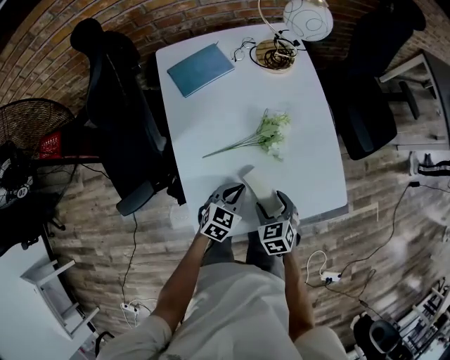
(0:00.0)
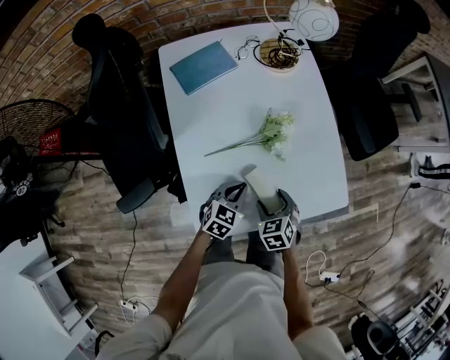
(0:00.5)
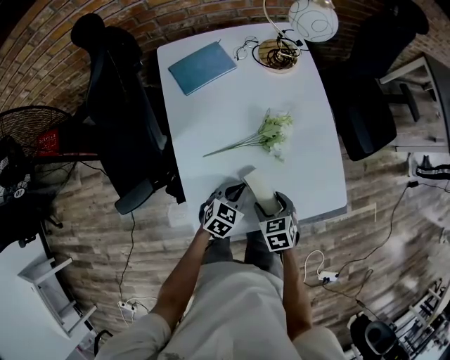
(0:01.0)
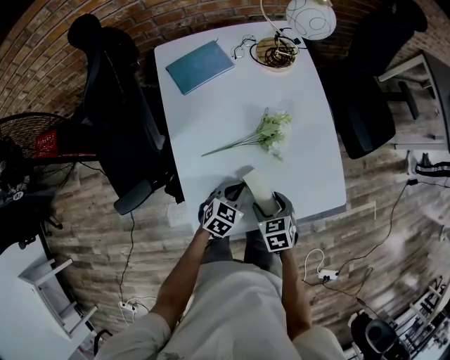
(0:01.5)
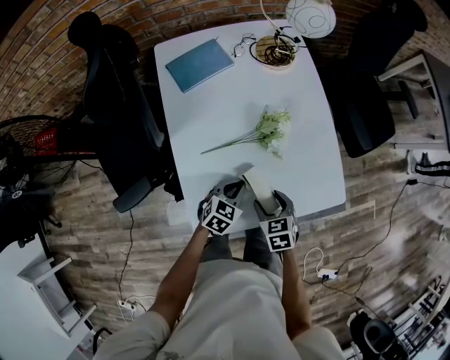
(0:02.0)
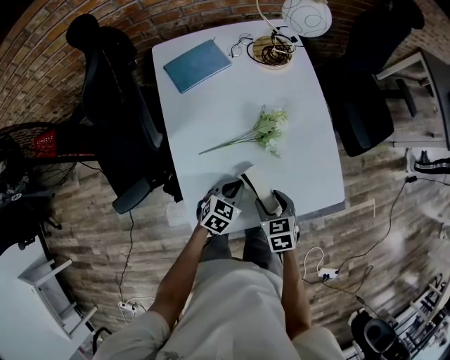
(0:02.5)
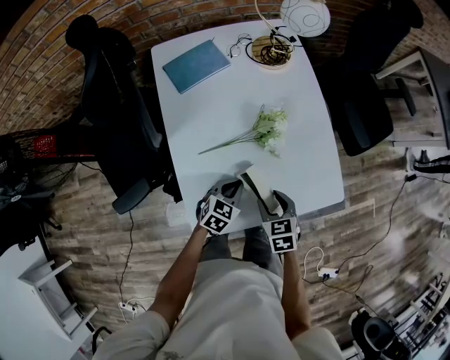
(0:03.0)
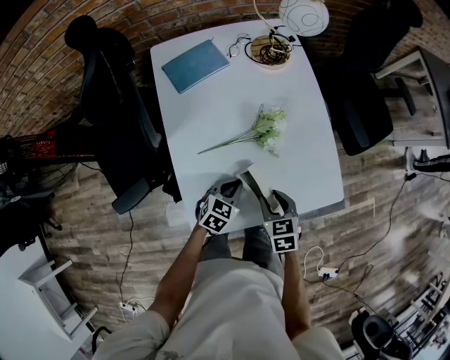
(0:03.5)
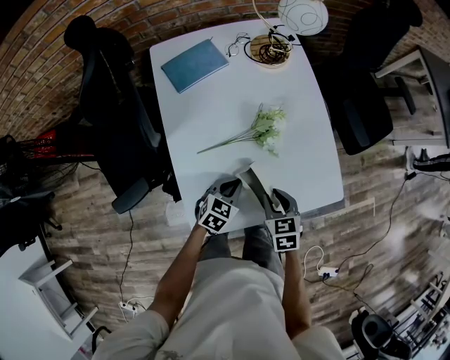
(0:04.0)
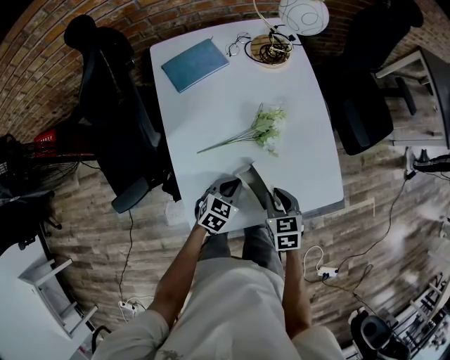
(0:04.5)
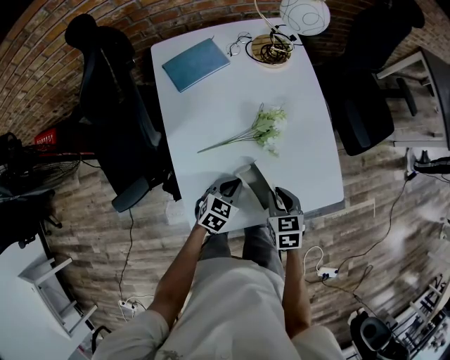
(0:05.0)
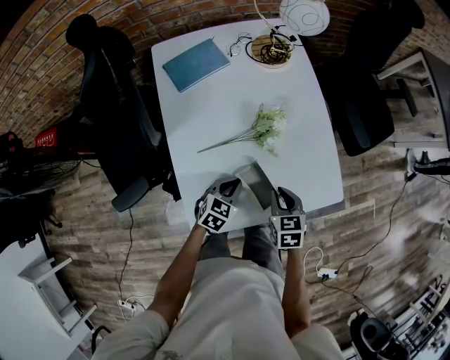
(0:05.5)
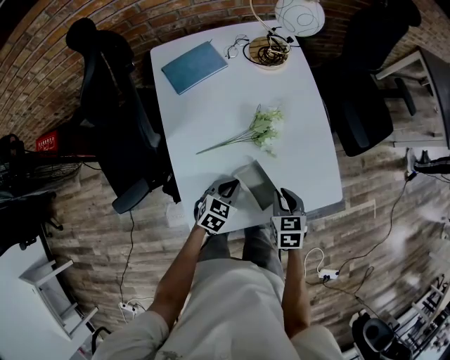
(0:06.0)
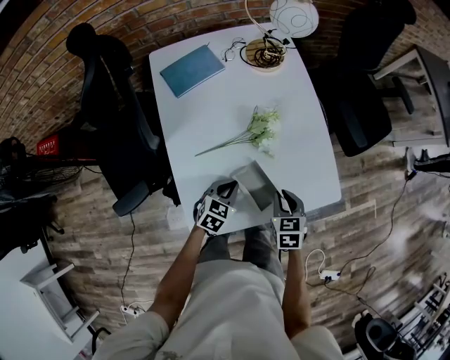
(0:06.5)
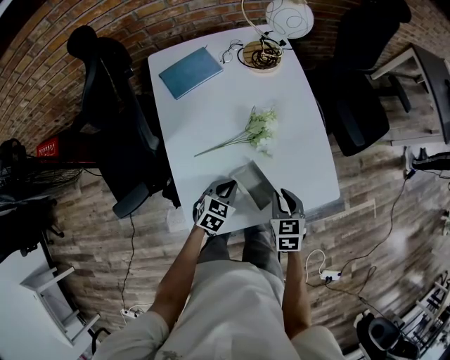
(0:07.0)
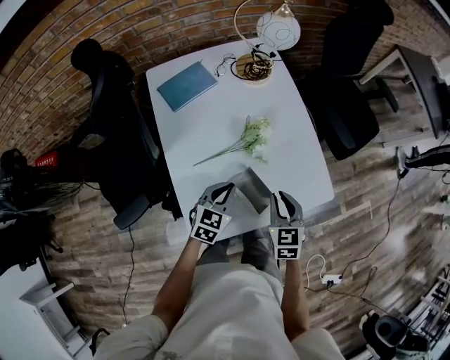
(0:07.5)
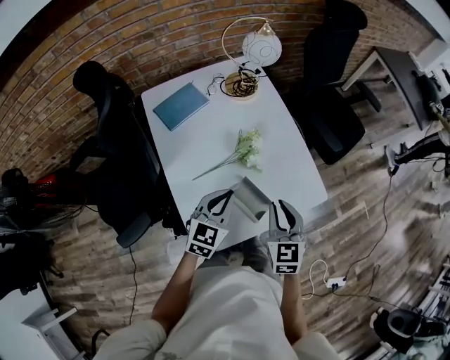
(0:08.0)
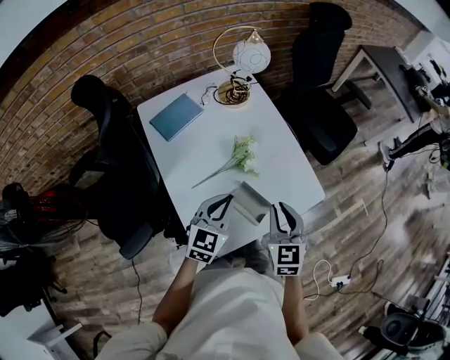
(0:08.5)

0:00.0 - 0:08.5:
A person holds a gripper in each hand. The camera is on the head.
0:00.0 - 0:02.0: The grippers stay close to where they were, moving slightly.
0:02.0 - 0:04.0: The right gripper closes up.
0:04.0 - 0:06.5: There are only small adjustments of the grippers.
0:06.5 - 0:08.5: The grippers both shift upward by some 20 cm. The left gripper swivels approximately 30 degrees. Meanwhile the right gripper rotates some 30 degrees.

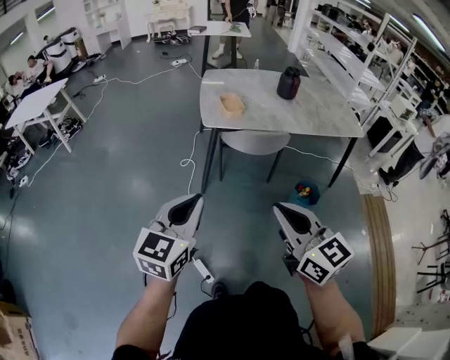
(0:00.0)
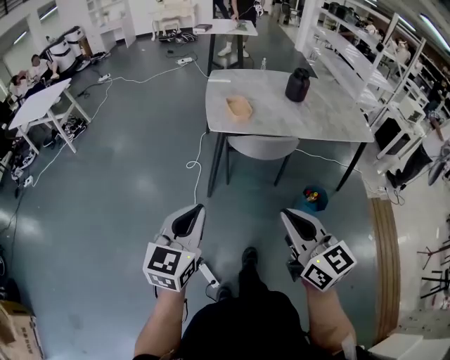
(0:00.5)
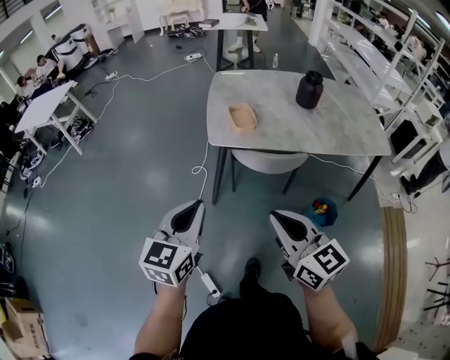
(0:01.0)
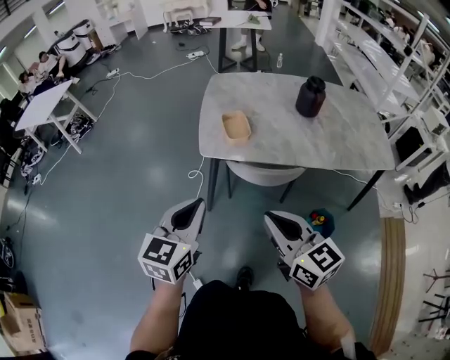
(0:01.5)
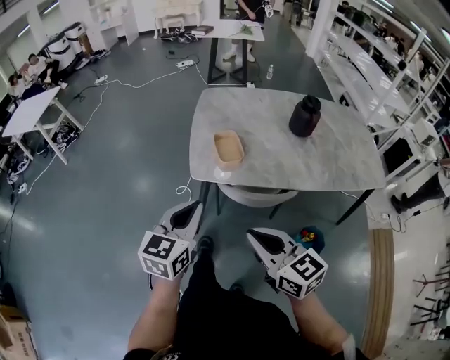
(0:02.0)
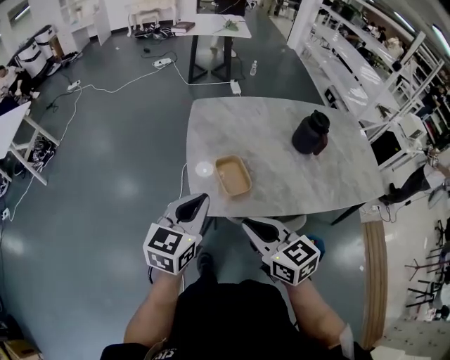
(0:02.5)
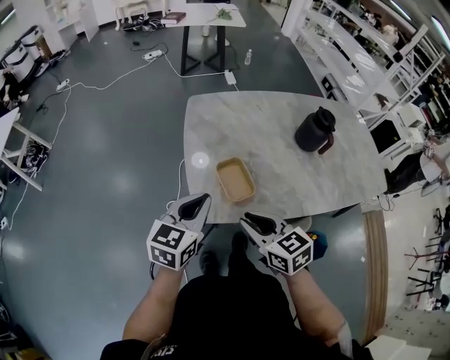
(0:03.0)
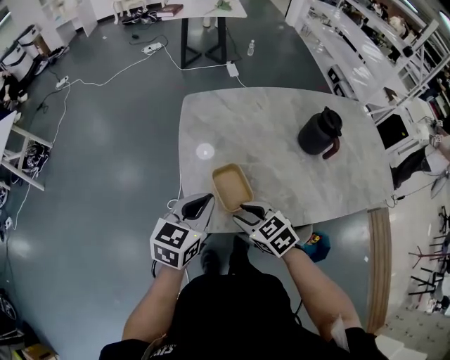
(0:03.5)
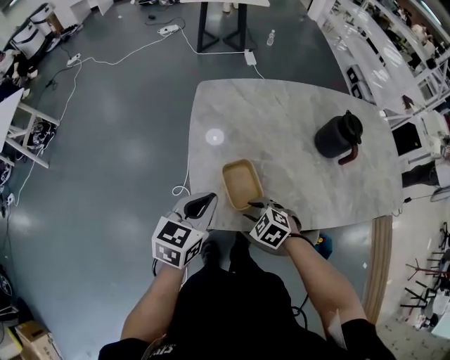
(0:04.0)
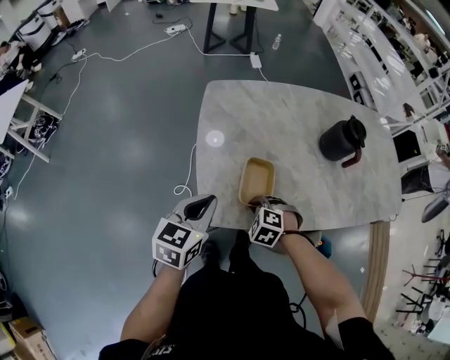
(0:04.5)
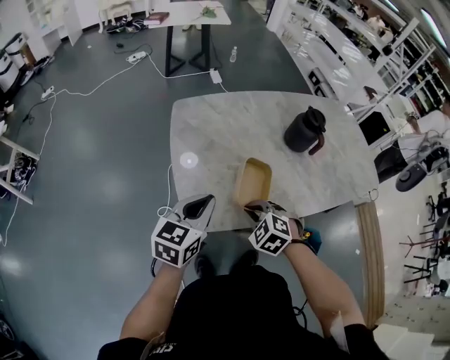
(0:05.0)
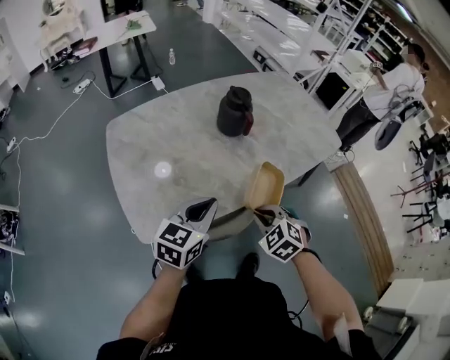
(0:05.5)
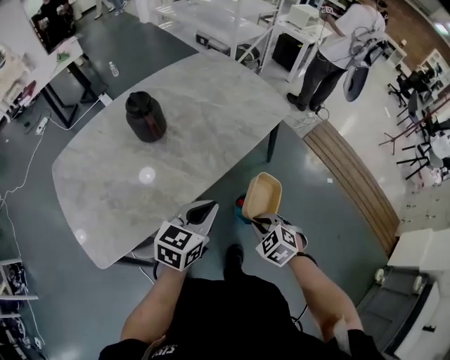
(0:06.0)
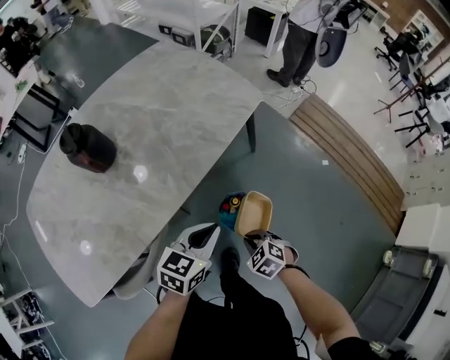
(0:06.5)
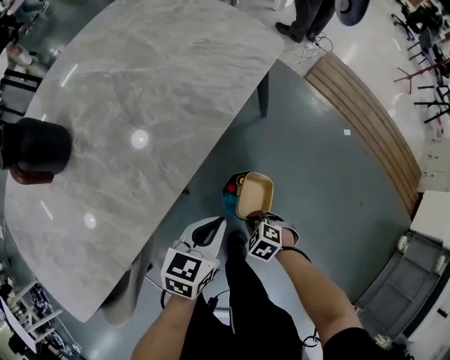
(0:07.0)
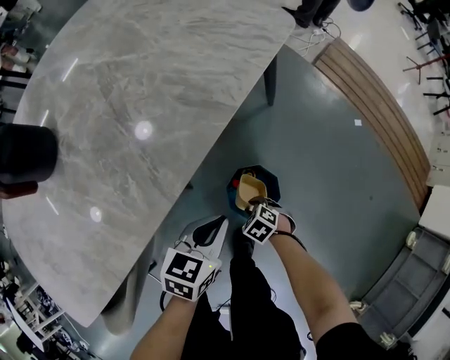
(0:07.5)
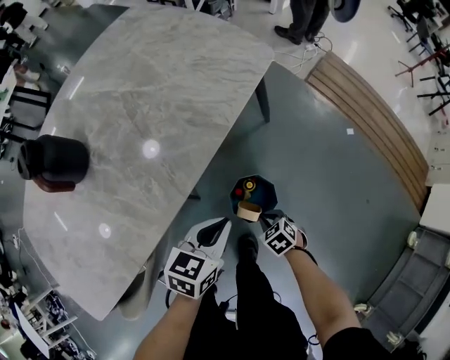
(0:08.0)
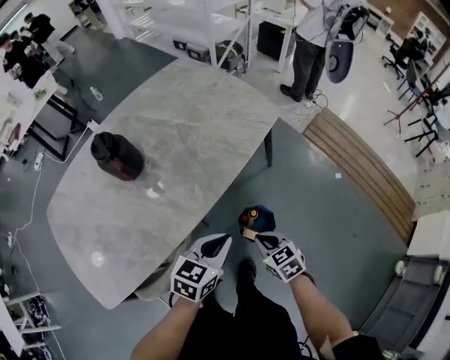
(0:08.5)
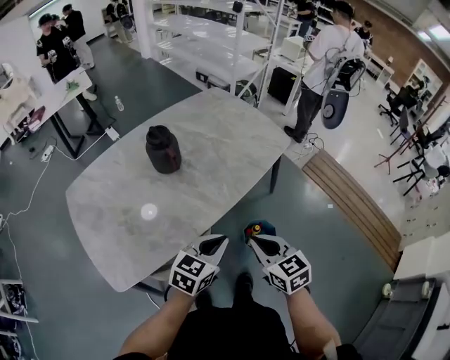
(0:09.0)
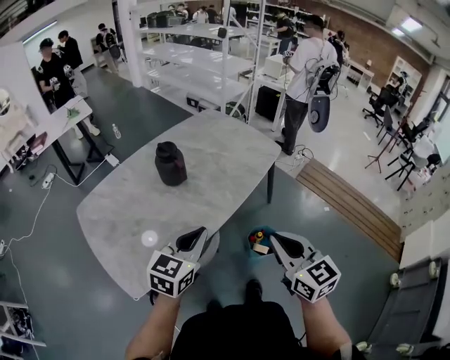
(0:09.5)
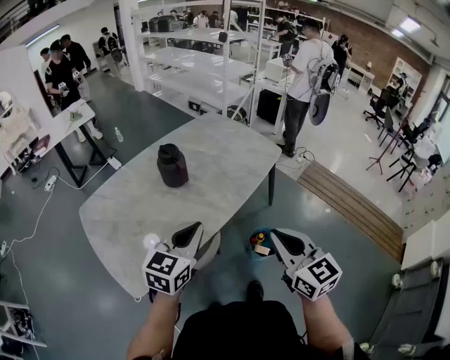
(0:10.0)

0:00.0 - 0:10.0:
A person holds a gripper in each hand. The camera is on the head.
0:00.0 - 0:02.0: The two grippers go some 30 cm forward.
0:02.0 - 0:04.0: The left gripper shifts about 30 cm forward. Meanwhile the right gripper heads forward and downward, covering approximately 40 cm, points its fingers some 50 degrees further downward, and opens its fingers.
0:04.0 - 0:06.0: Both grippers are carried approximately 50 cm. The right gripper changes its angle by about 50 degrees, and closes its fingers. The left gripper swivels some 40 degrees.
0:06.0 - 0:08.0: The two grippers go about 25 cm downward. The right gripper changes its angle by approximately 30 degrees.
0:08.0 - 0:10.0: The left gripper heads upward, to the left and backward, covering some 50 cm, and swivels about 30 degrees; the right gripper is displaced upward by approximately 60 cm, and angles its fingers upward, by roughly 60 degrees.

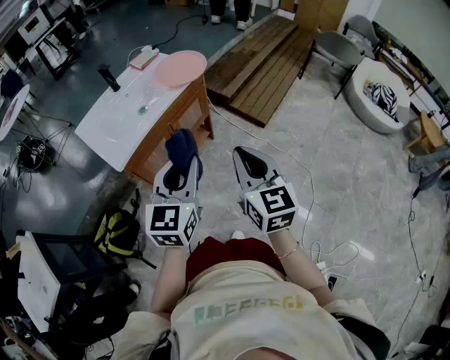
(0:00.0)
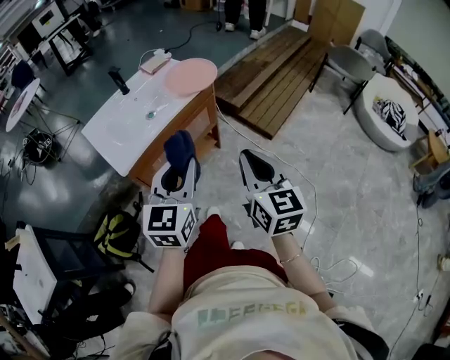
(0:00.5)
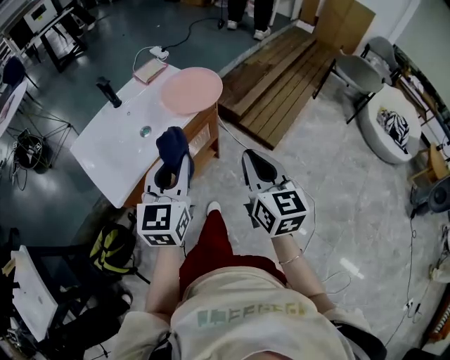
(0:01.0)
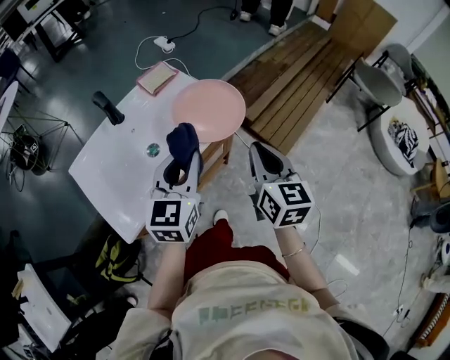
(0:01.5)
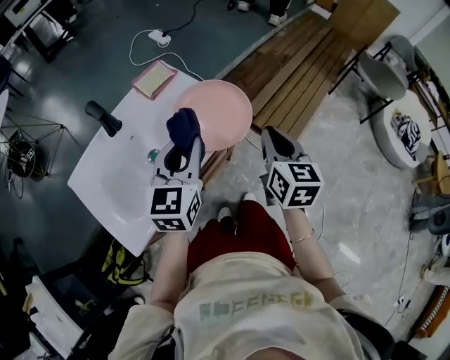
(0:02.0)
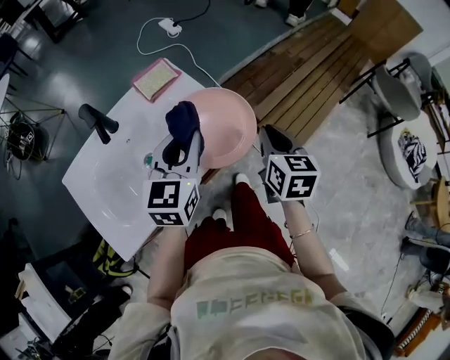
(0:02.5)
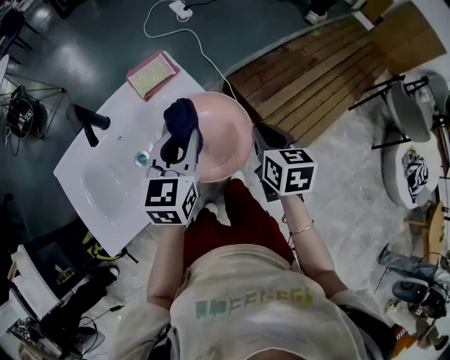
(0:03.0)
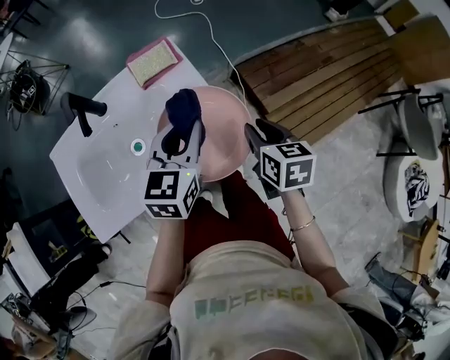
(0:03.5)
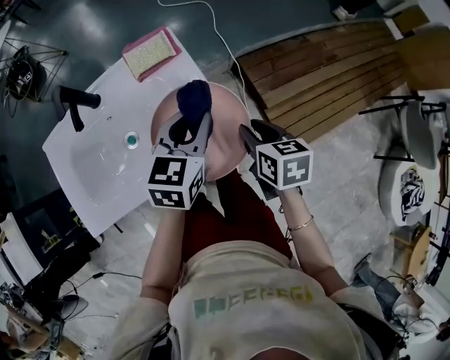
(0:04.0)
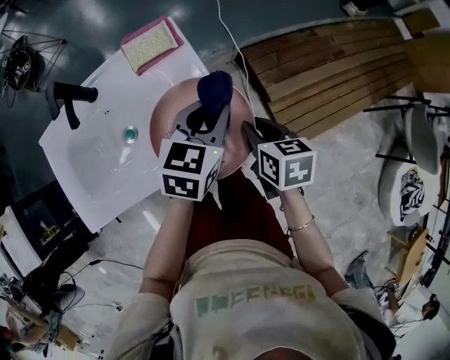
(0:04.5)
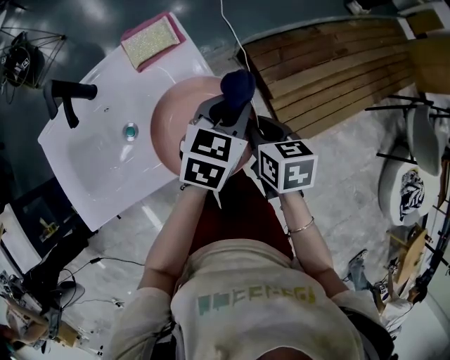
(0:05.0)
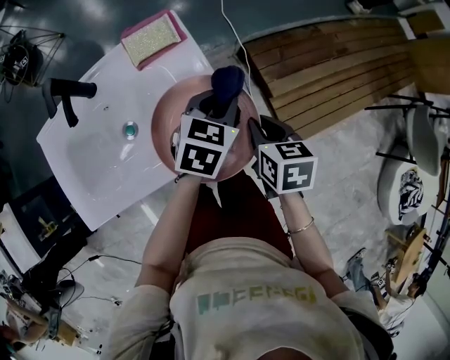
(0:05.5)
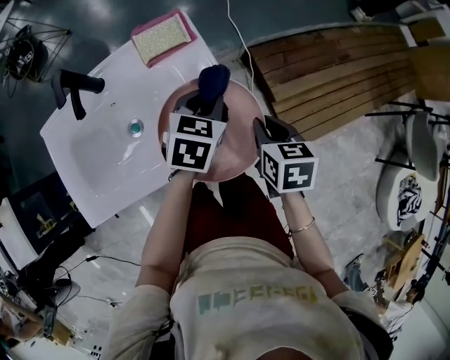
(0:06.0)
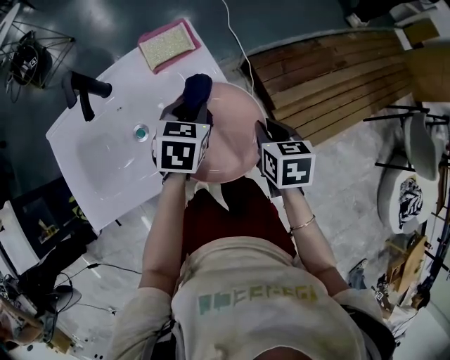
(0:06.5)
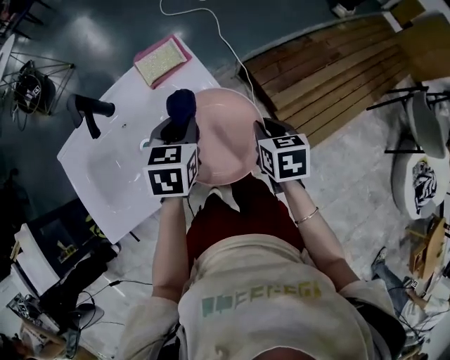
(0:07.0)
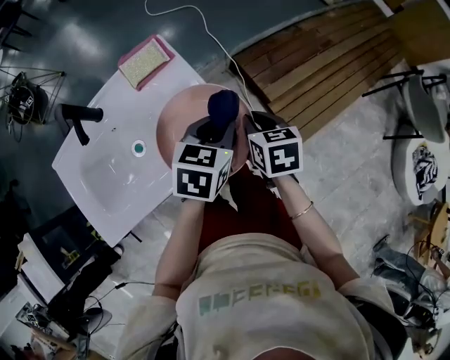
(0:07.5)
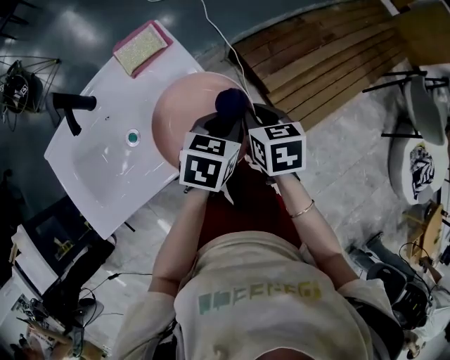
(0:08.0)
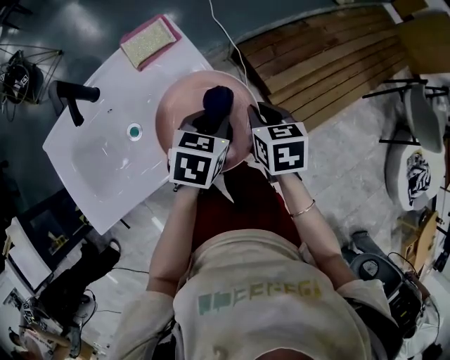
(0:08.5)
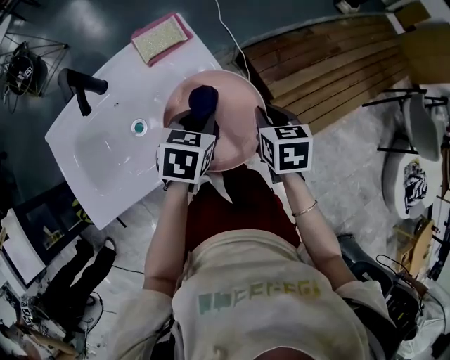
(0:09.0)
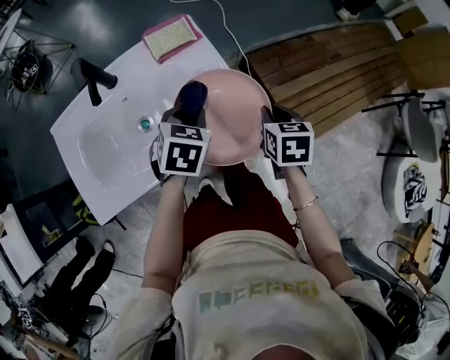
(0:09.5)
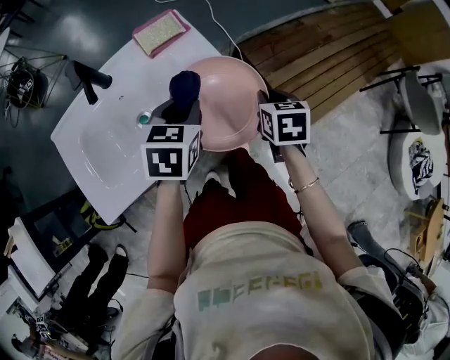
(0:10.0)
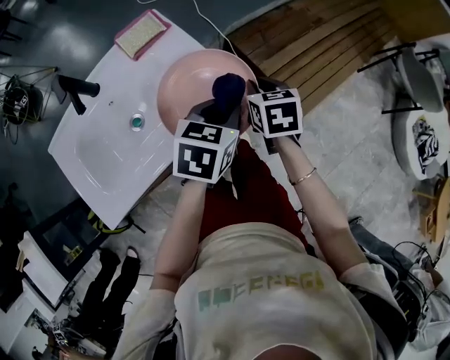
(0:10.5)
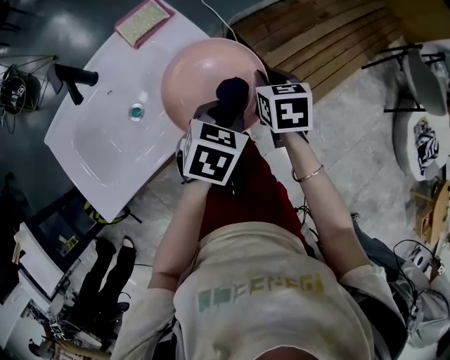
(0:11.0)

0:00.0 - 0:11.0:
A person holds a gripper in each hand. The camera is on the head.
0:00.0 - 0:02.0: The pair of grippers is taken forward, roughly 50 cm.
0:02.0 - 0:03.5: The right gripper moves forward and downward, approximately 20 cm, and changes its angle by some 40 degrees. Meanwhile the left gripper travels forward by some 15 cm.
0:03.5 - 0:05.5: The left gripper travels downward, to the right and forward by some 15 cm, and swivels approximately 20 degrees.
0:05.5 - 0:07.5: The left gripper moves backward, some 5 cm, and travels to the left and back again, approximately 10 cm each way.
0:07.5 - 0:09.0: The left gripper is displaced to the left by approximately 10 cm.
0:09.0 - 0:11.0: The left gripper goes some 10 cm backward and to the right.
